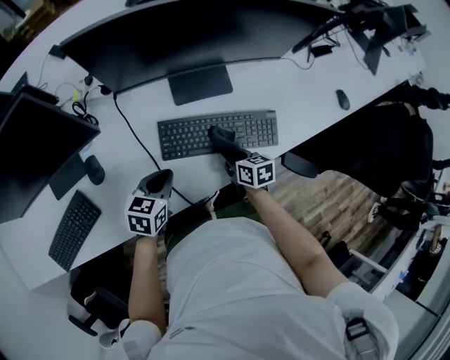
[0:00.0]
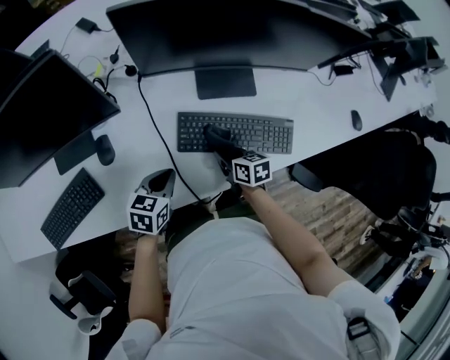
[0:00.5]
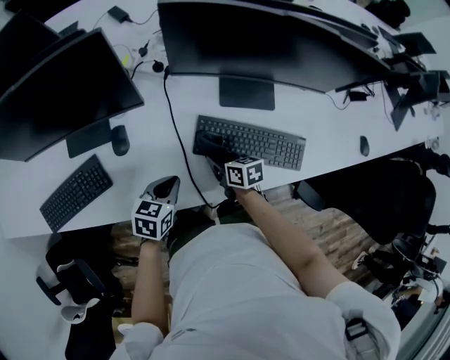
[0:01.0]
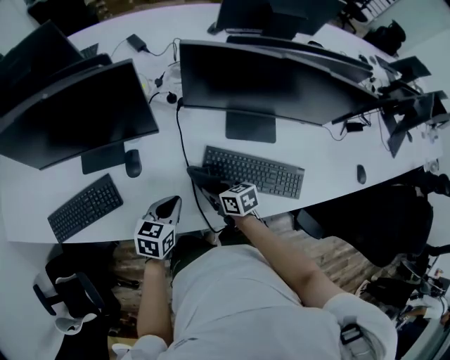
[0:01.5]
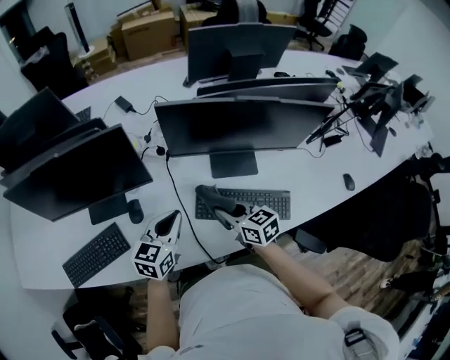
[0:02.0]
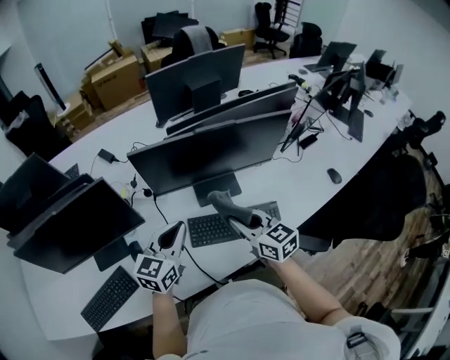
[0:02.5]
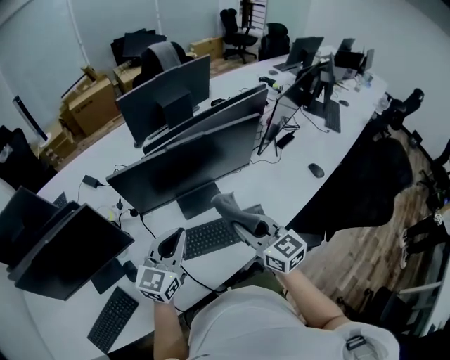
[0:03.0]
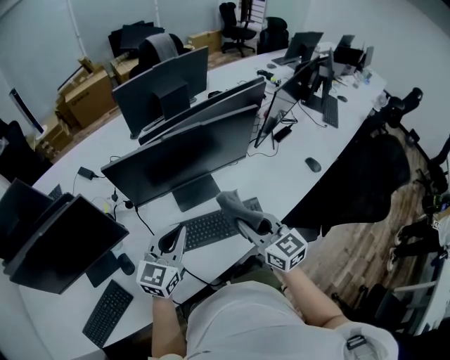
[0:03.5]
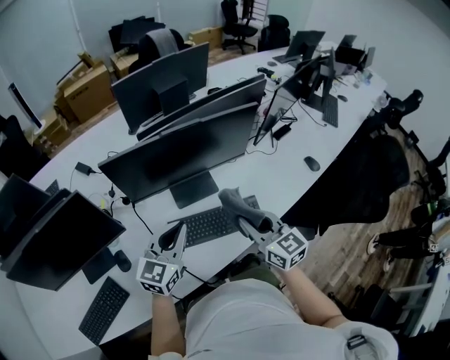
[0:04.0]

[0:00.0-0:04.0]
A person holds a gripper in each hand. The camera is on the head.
0:00.0 to 0:02.0: Both grippers travel together upward, about 15 cm. The left gripper rotates roughly 30 degrees. The right gripper changes its angle by approximately 30 degrees.
0:02.0 to 0:04.0: The left gripper changes place by approximately 15 cm, and swivels some 30 degrees. Meanwhile the right gripper moves roughly 20 cm, and swivels about 40 degrees.

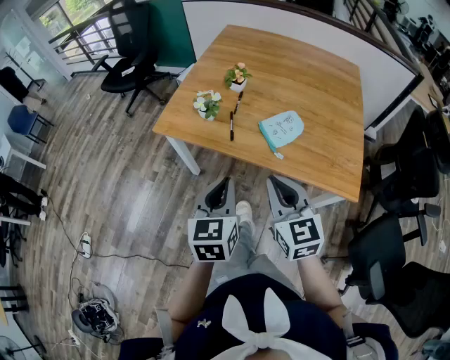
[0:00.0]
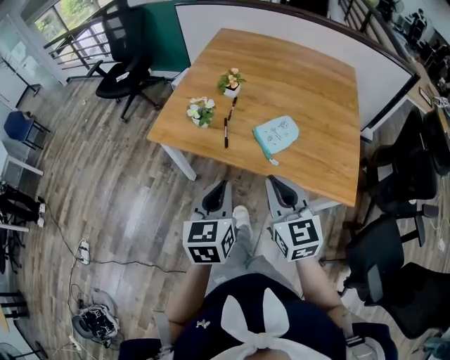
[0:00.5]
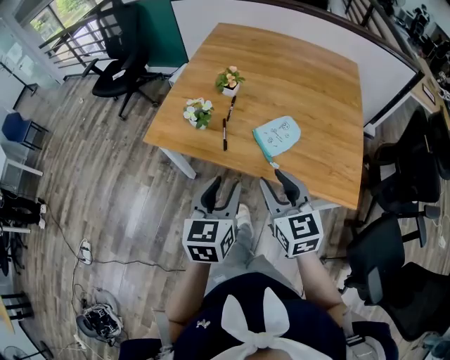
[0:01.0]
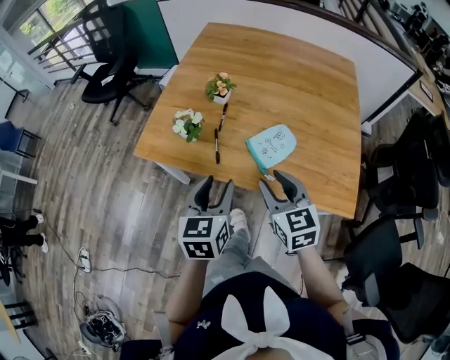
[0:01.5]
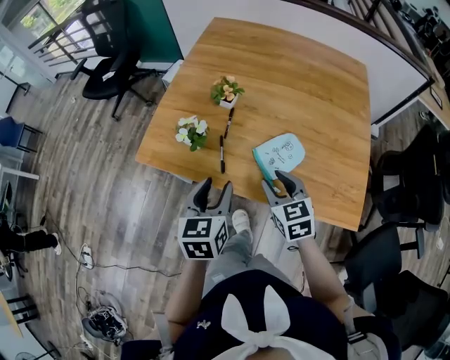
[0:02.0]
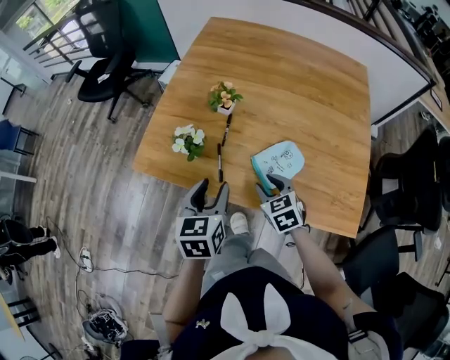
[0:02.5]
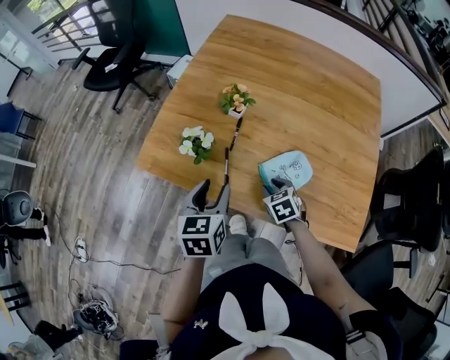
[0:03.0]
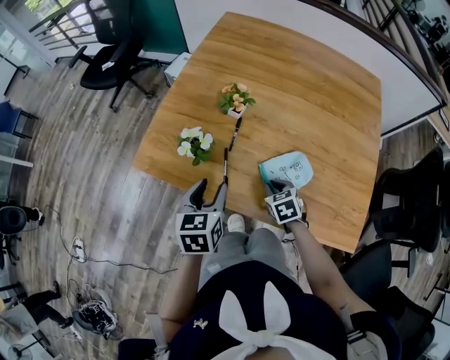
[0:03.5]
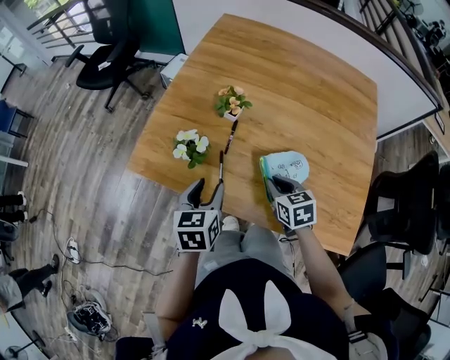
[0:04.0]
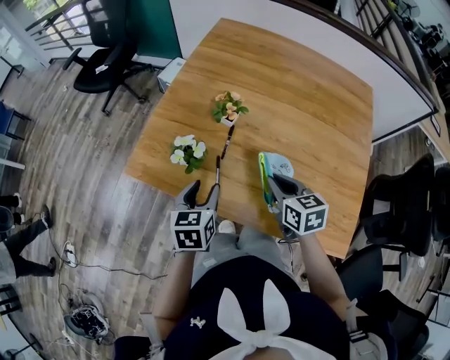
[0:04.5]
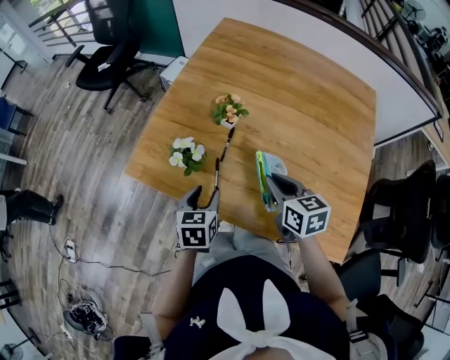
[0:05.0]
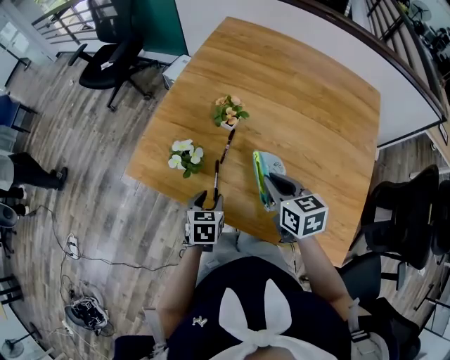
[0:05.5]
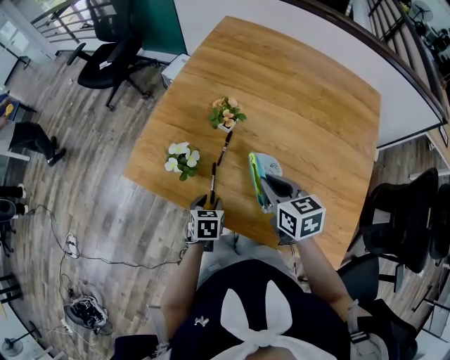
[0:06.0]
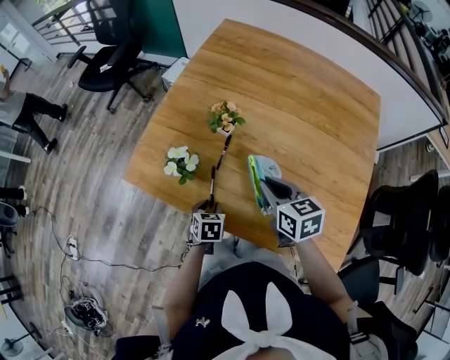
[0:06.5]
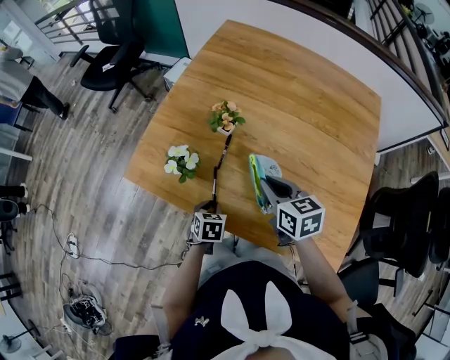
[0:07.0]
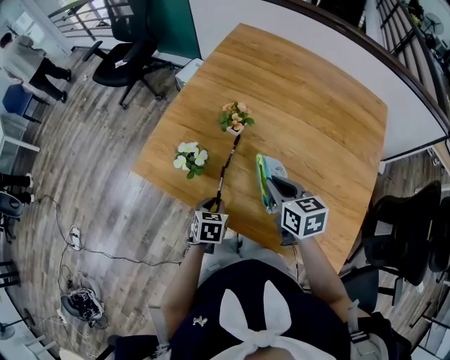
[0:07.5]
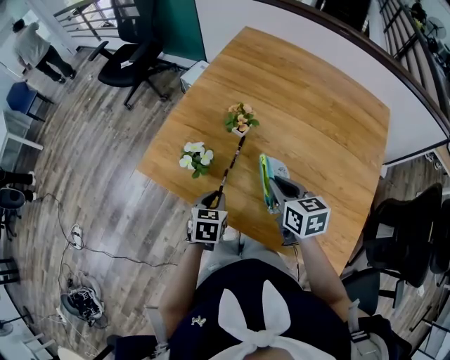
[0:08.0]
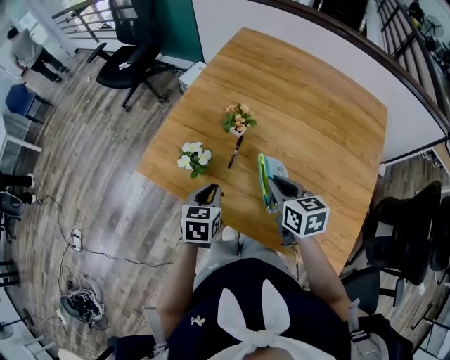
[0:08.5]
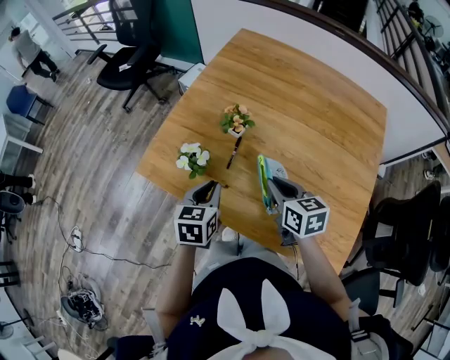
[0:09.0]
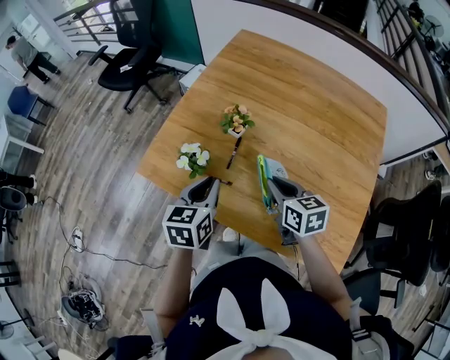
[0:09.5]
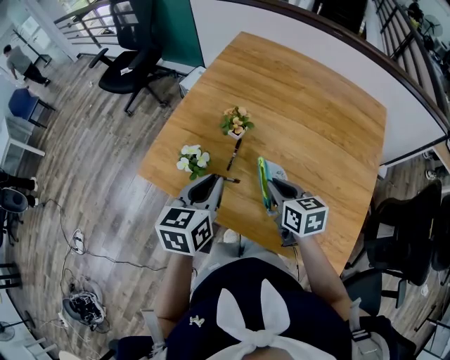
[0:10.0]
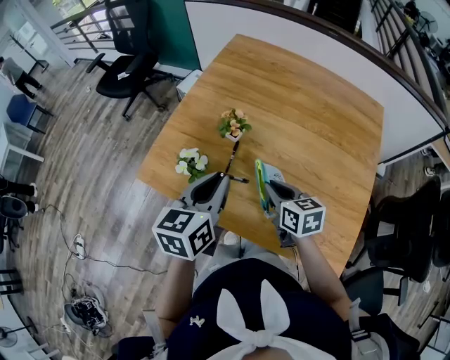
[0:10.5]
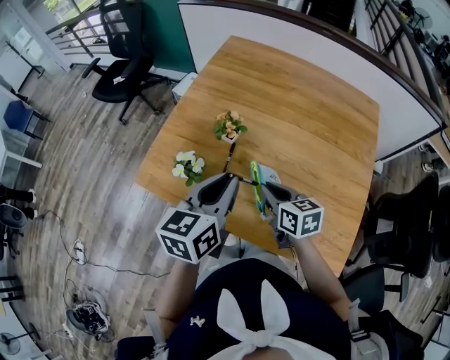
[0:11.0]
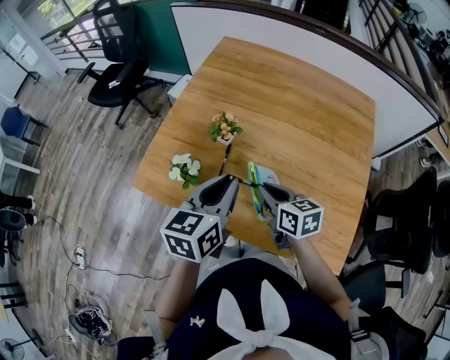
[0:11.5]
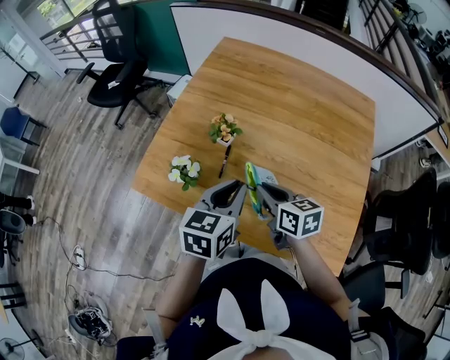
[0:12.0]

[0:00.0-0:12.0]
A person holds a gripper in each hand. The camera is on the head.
0:00.0 to 0:02.0: The right gripper shifts some 20 cm forward and downward, and opens up; the left gripper travels forward by approximately 15 cm, and opens its fingers.
0:02.0 to 0:04.0: The two grippers go approximately 10 cm forward and downward. The right gripper closes.
0:04.0 to 0:06.0: The left gripper shifts some 15 cm downward, and swivels some 20 degrees. Meanwhile the right gripper heads upward, covering about 10 cm.
0:06.0 to 0:08.0: The left gripper heads upward, covering about 10 cm, and closes its fingers.
0:08.0 to 0:10.0: The left gripper moves upward, approximately 20 cm, and changes its angle by some 20 degrees.
0:10.0 to 0:12.0: The left gripper is displaced to the right by some 10 cm.

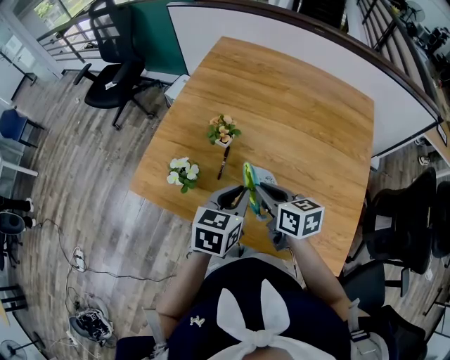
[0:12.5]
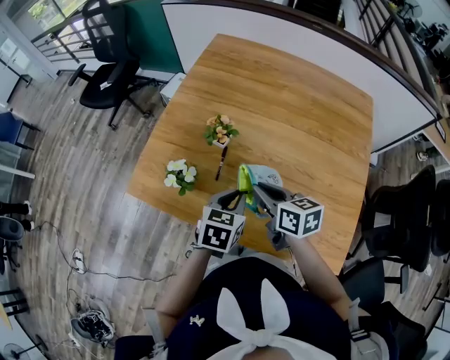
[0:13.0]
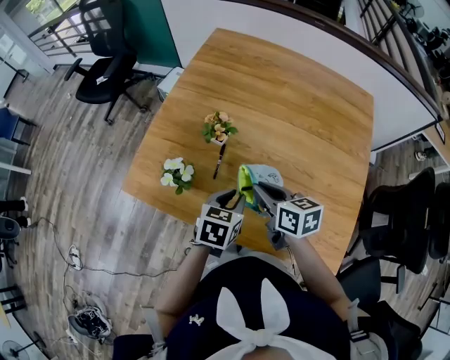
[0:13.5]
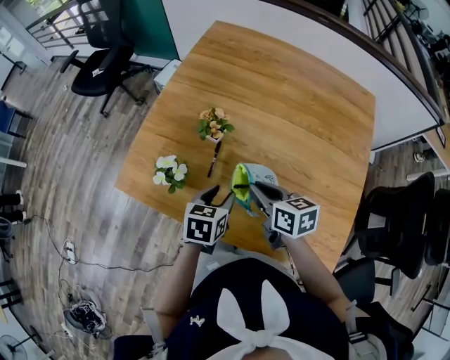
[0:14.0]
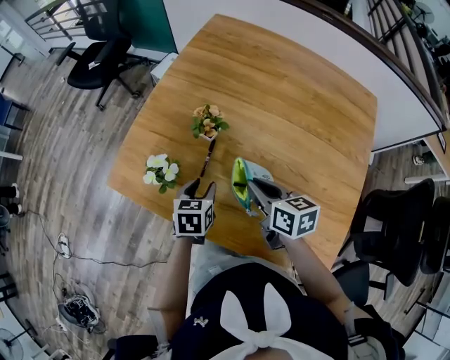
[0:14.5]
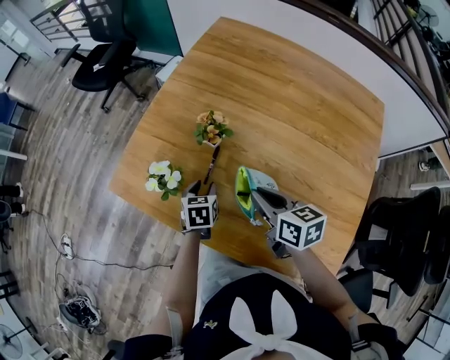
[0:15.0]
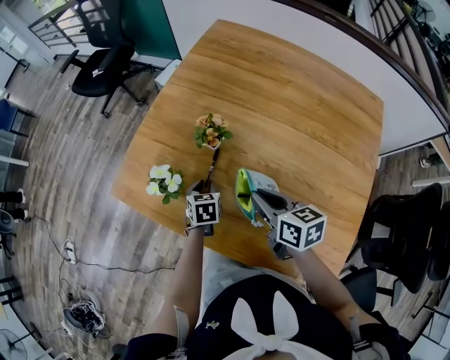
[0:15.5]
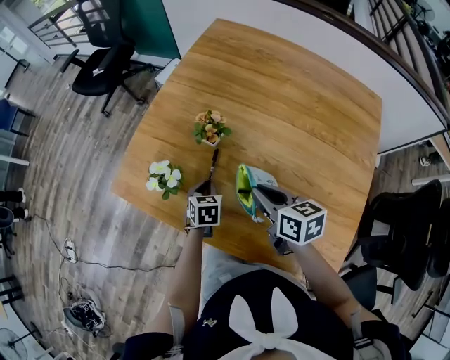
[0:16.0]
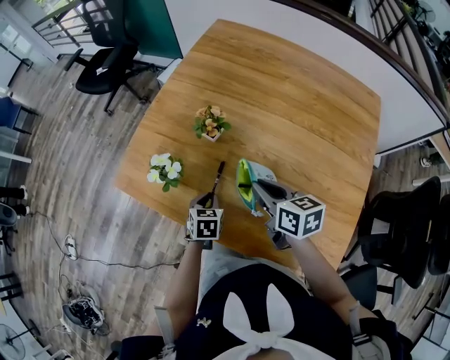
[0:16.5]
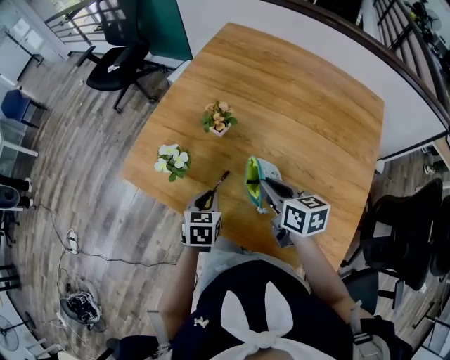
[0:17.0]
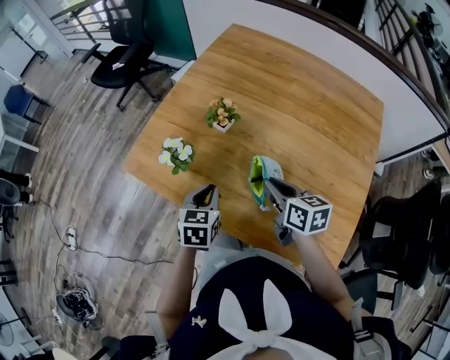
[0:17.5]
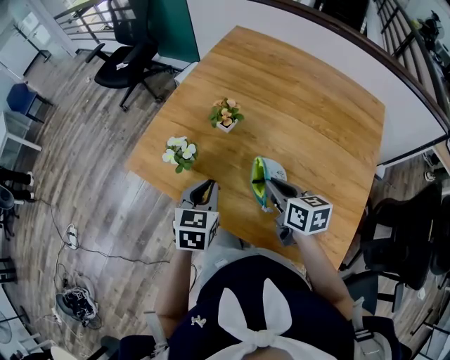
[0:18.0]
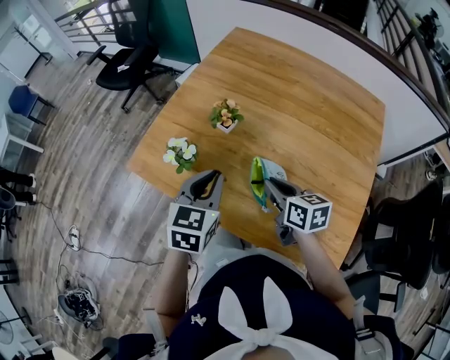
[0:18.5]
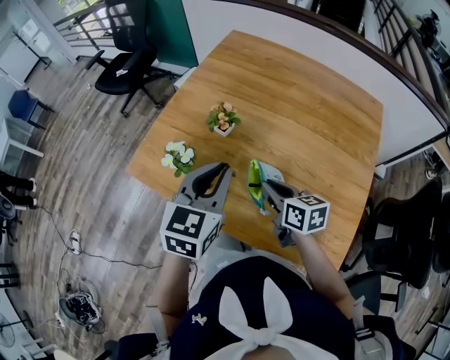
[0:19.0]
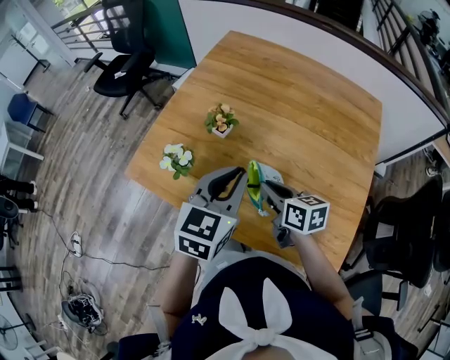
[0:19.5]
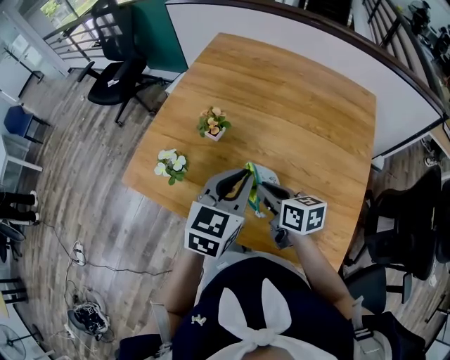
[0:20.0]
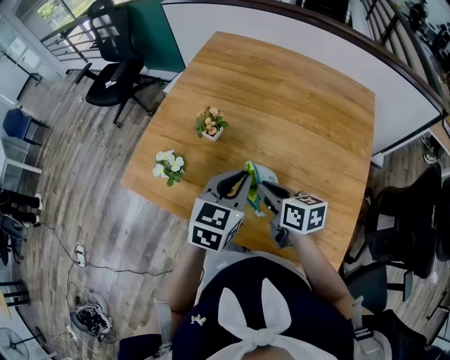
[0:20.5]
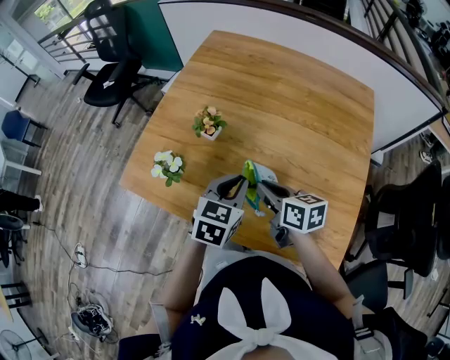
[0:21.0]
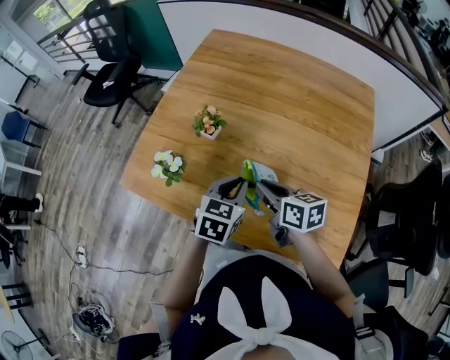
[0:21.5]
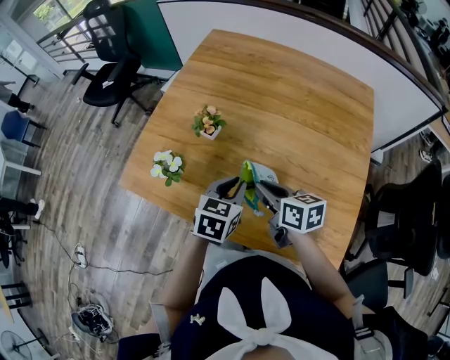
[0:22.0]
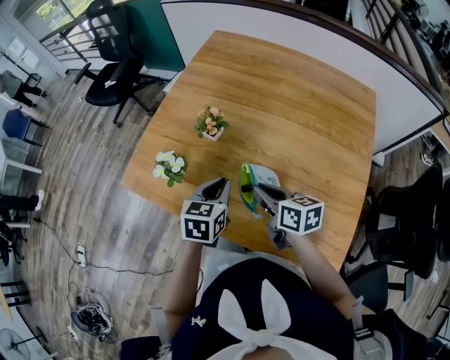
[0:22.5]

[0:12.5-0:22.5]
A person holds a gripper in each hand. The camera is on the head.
0:12.5 to 0:14.5: The left gripper travels downward and to the left by some 15 cm, swivels some 20 degrees, and opens its fingers. The right gripper moves some 5 cm.
0:14.5 to 0:16.5: The left gripper is displaced downward by some 5 cm, and closes.
0:16.5 to 0:18.5: The left gripper is displaced upward by roughly 25 cm, and changes its angle by roughly 30 degrees.
0:18.5 to 0:20.5: The left gripper is displaced to the right by about 10 cm.
0:20.5 to 0:22.5: The left gripper moves downward and to the left, approximately 10 cm.

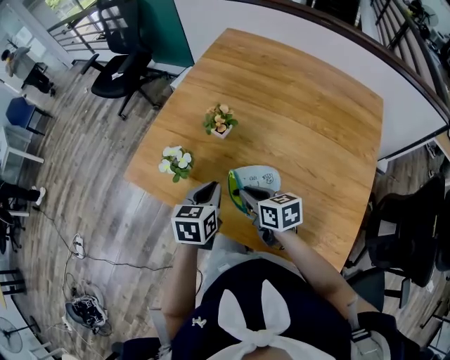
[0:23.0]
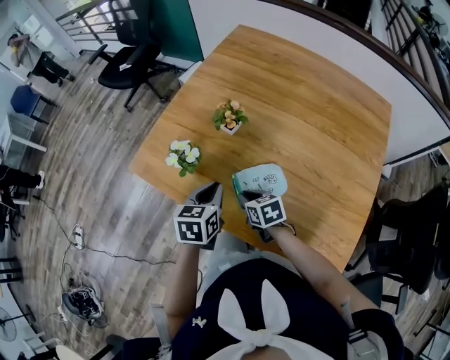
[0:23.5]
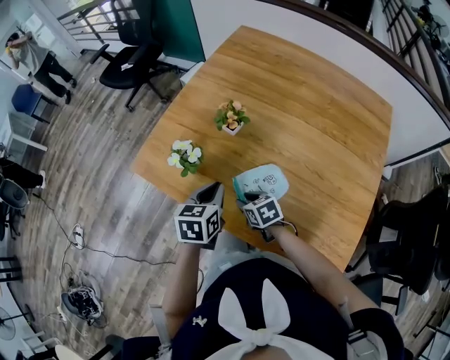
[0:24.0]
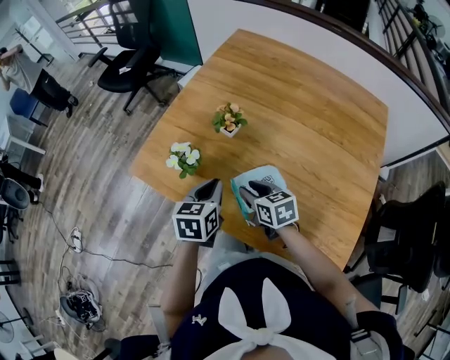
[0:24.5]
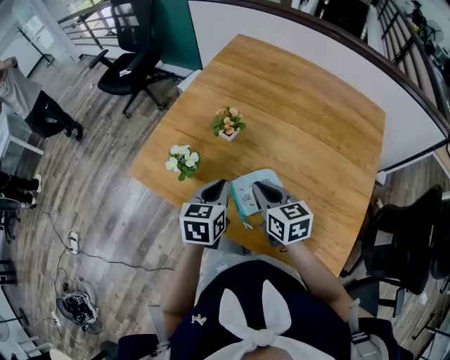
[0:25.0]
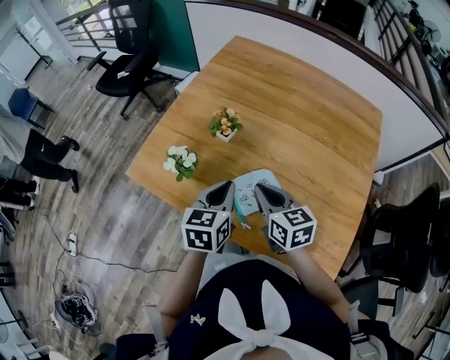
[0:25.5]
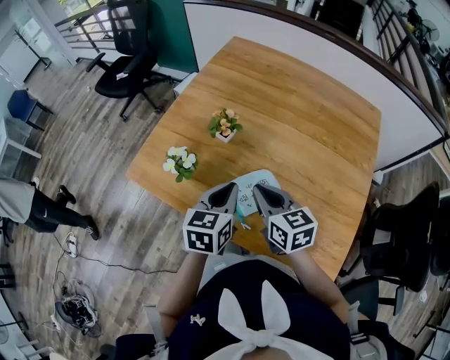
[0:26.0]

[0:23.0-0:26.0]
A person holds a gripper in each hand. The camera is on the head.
0:23.0 to 0:24.5: The right gripper travels downward and back again, roughly 10 cm each way, and opens up.
0:24.5 to 0:26.0: The right gripper shifts approximately 10 cm upward, and closes up. The left gripper shifts some 10 cm to the right and upward.
